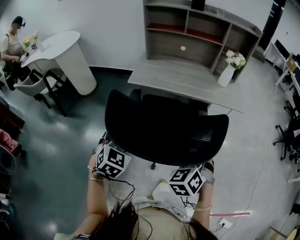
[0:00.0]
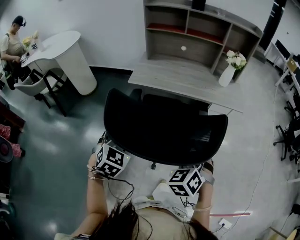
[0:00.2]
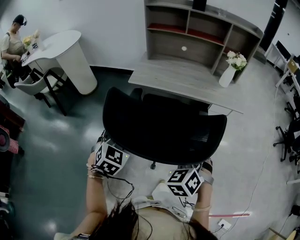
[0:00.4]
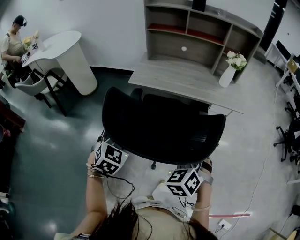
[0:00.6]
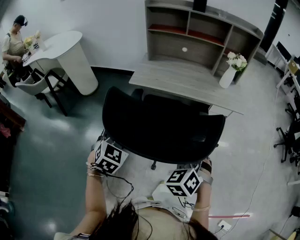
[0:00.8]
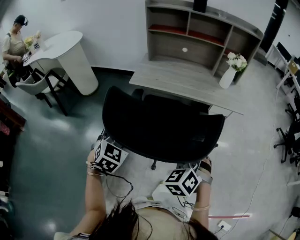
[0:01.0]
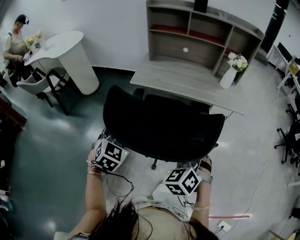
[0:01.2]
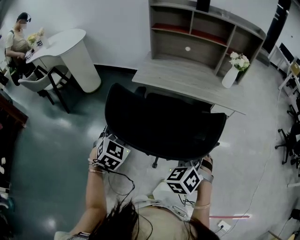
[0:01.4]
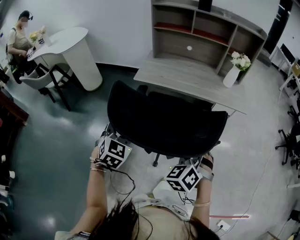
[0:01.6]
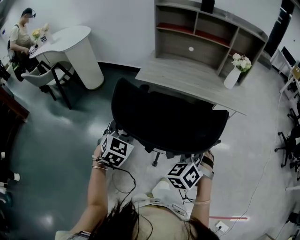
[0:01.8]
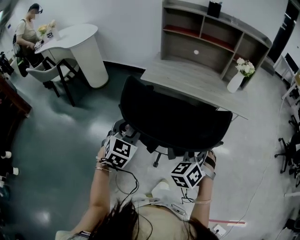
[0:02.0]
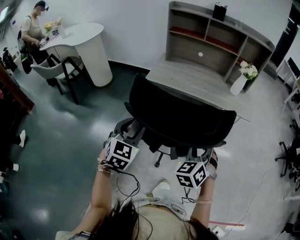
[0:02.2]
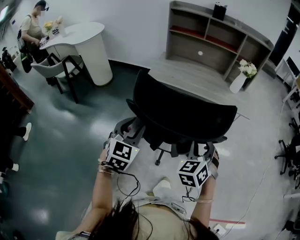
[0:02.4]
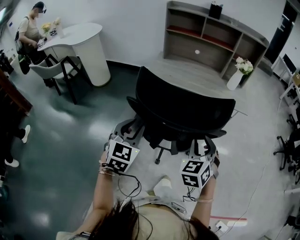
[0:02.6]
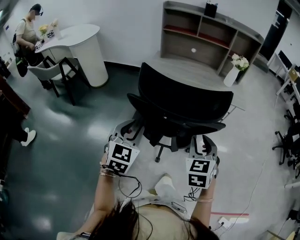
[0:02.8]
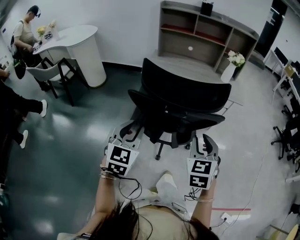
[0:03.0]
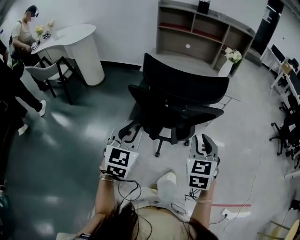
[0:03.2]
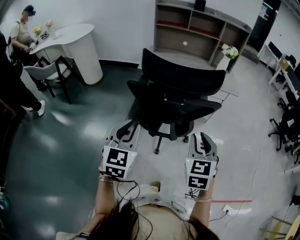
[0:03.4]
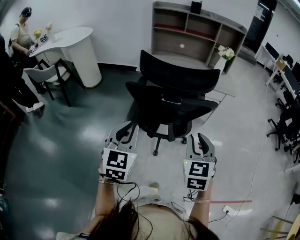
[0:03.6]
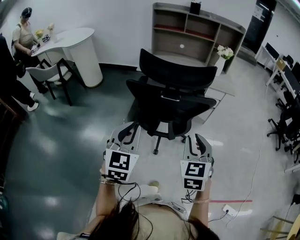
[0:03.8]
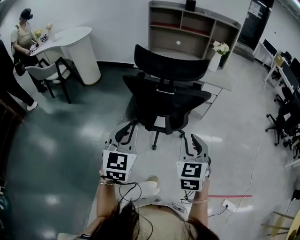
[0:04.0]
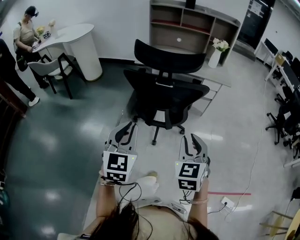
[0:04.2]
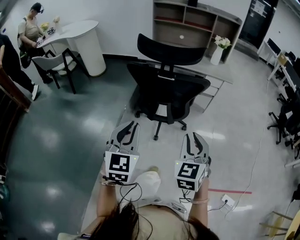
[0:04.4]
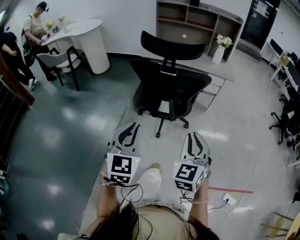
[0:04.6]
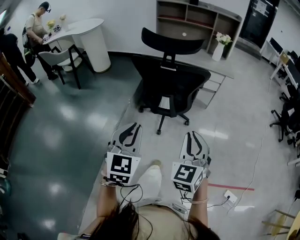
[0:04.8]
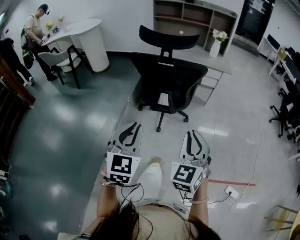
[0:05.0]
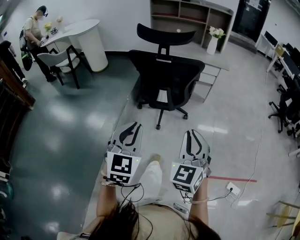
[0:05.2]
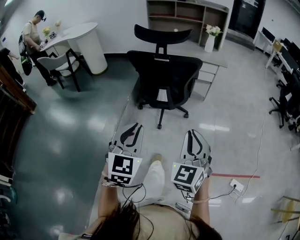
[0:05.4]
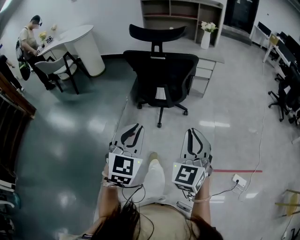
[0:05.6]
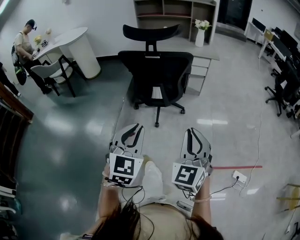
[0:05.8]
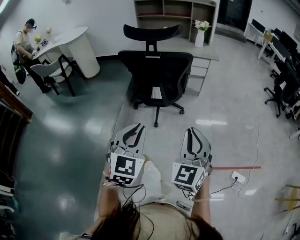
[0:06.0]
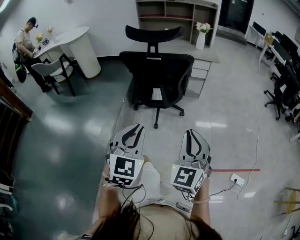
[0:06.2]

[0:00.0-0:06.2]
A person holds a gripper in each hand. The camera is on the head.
0:00.0 to 0:01.6: The grippers make only small movements.
0:01.6 to 0:03.2: The grippers both shift backward by roughly 15 cm. The right gripper changes its angle by approximately 30 degrees; the left gripper changes its angle by about 20 degrees.
0:03.2 to 0:04.6: The two grippers go roughly 20 cm backward.
0:04.6 to 0:06.2: The right gripper goes some 15 cm backward. Meanwhile the left gripper is displaced backward and to the right by about 15 cm.

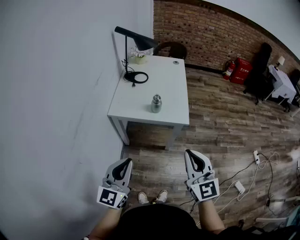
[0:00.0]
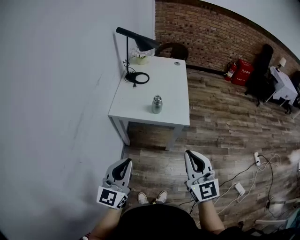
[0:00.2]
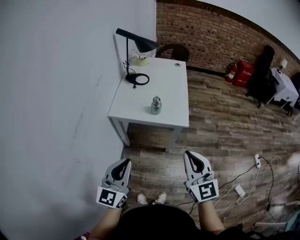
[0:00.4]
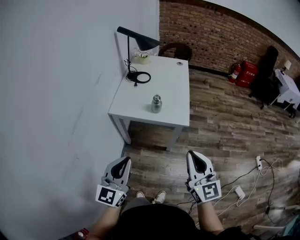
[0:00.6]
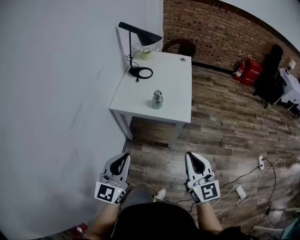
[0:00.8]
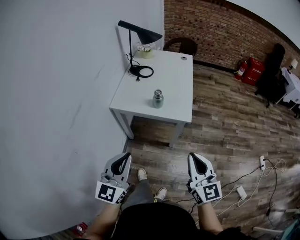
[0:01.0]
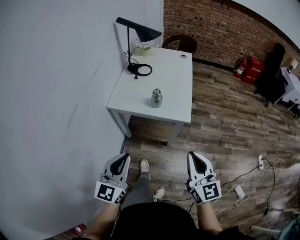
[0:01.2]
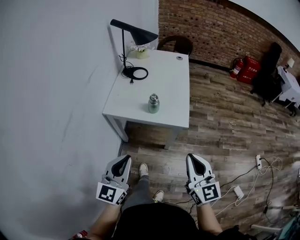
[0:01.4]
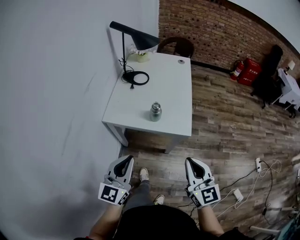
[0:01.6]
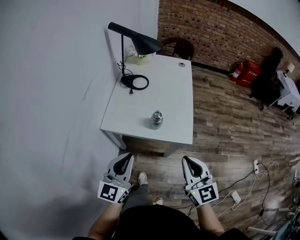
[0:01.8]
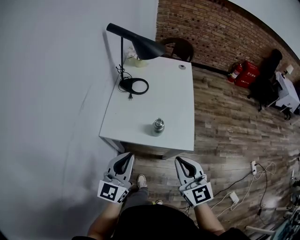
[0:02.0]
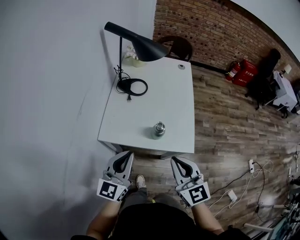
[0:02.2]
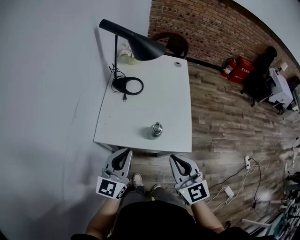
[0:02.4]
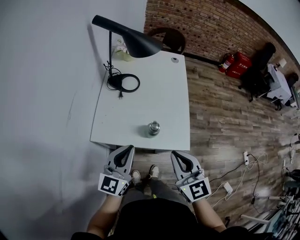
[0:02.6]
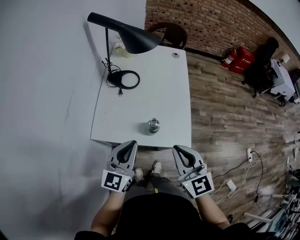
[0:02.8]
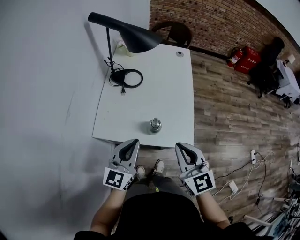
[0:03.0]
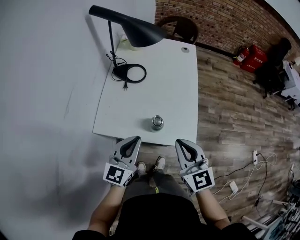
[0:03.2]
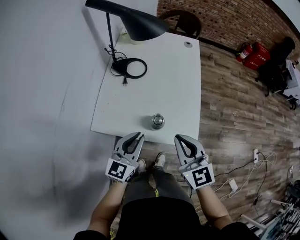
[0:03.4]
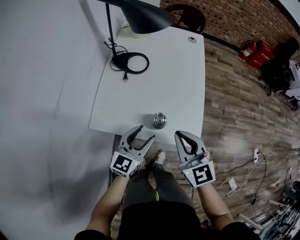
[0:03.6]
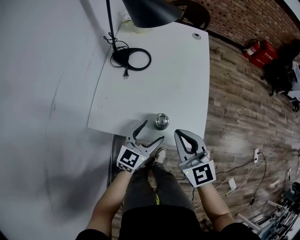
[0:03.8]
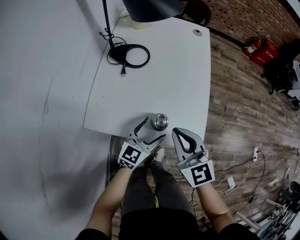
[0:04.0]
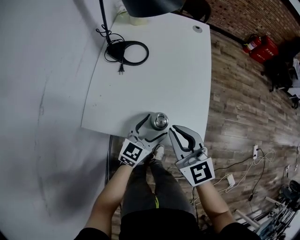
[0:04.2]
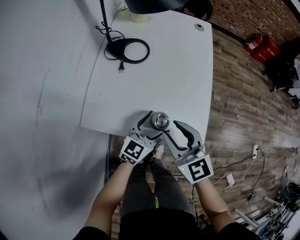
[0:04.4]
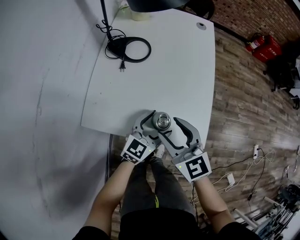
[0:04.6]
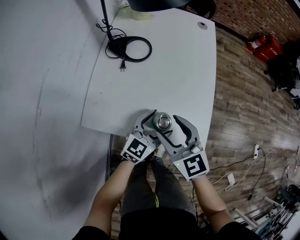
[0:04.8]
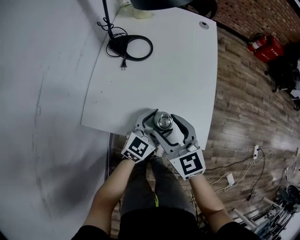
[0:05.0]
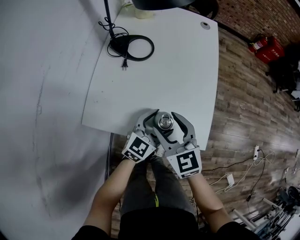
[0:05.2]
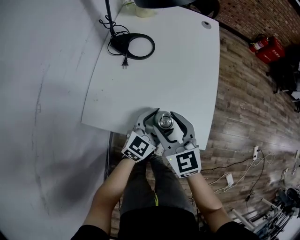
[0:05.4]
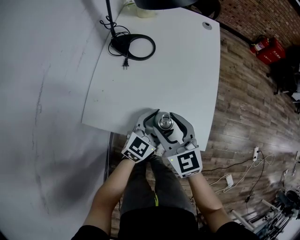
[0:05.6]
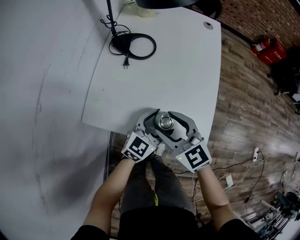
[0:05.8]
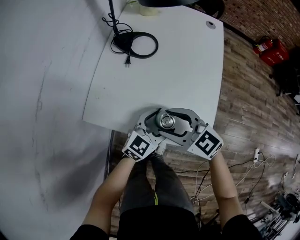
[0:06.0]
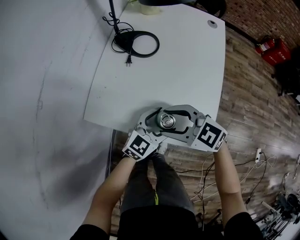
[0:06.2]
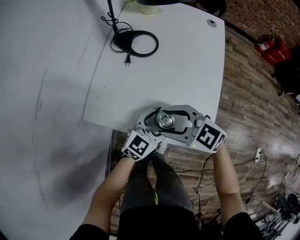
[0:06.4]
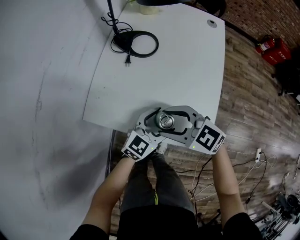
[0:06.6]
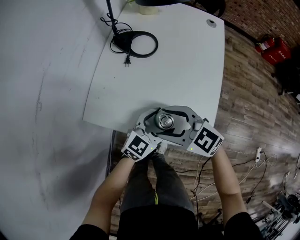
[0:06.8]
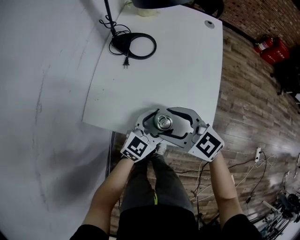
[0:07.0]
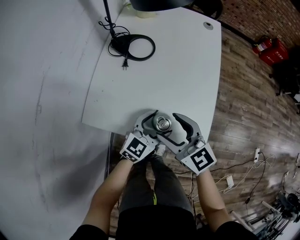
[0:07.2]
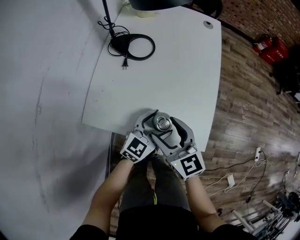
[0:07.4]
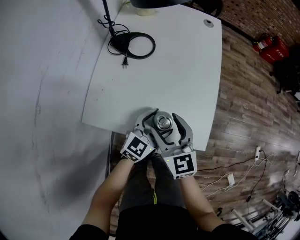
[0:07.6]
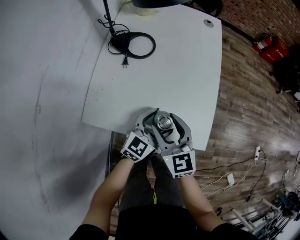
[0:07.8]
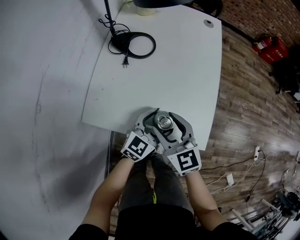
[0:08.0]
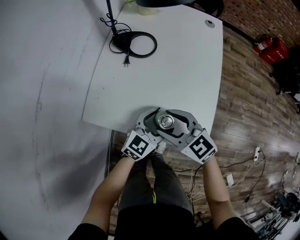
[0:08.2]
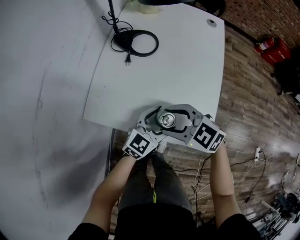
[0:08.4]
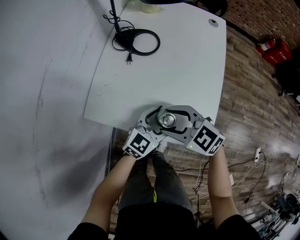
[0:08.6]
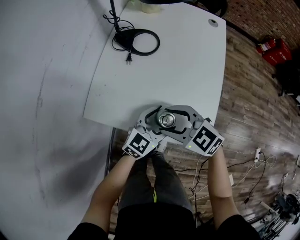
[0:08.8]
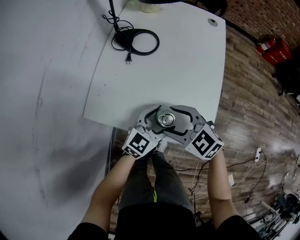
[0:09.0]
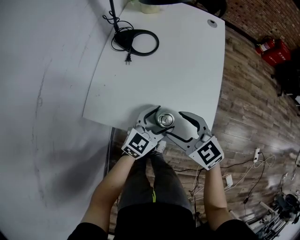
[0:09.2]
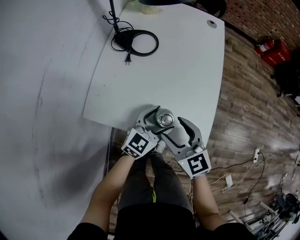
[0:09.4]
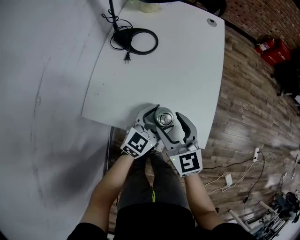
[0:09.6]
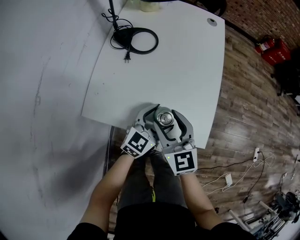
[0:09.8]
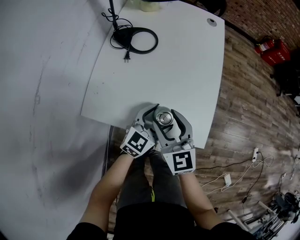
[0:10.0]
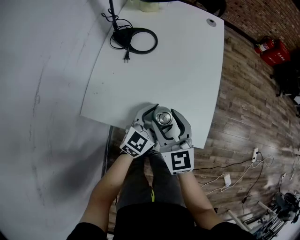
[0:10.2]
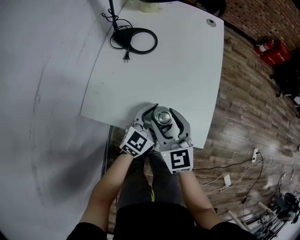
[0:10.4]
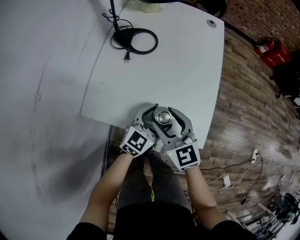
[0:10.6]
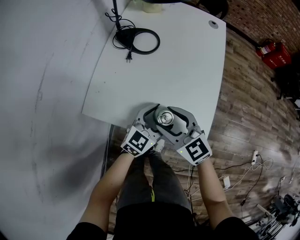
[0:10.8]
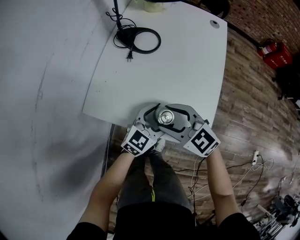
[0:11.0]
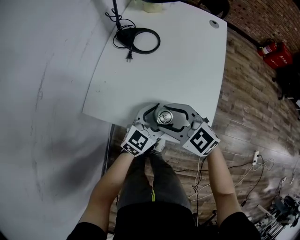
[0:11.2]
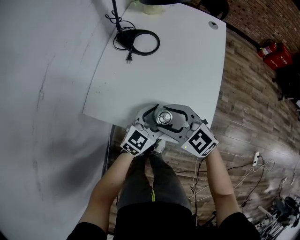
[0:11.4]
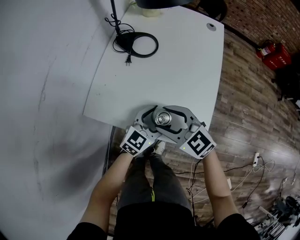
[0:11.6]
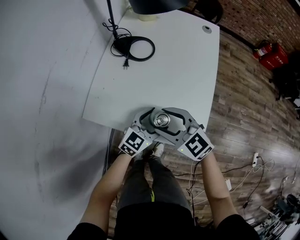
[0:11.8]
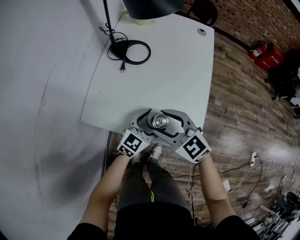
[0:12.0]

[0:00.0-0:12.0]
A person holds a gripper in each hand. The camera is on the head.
0:00.0 to 0:01.6: The left gripper moves forward, roughly 10 cm. The right gripper moves forward and downward, some 10 cm.
0:01.6 to 0:03.0: The grippers both shift forward by about 20 cm.
0:03.0 to 0:04.4: The left gripper shifts approximately 25 cm downward, forward and to the right, turns by roughly 20 degrees, and opens its fingers. Meanwhile the right gripper heads downward and forward, covering about 15 cm, and opens.
0:04.4 to 0:06.0: The right gripper moves roughly 5 cm, rotates approximately 30 degrees, and opens its fingers.
0:06.0 to 0:07.6: The right gripper swivels about 40 degrees.
0:07.6 to 0:09.0: The right gripper turns by roughly 50 degrees.
0:09.0 to 0:10.4: The right gripper turns by some 40 degrees.
0:10.4 to 0:12.0: The right gripper swivels some 30 degrees.

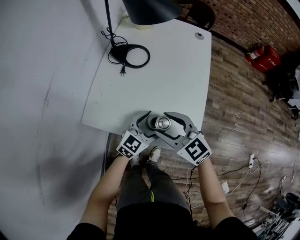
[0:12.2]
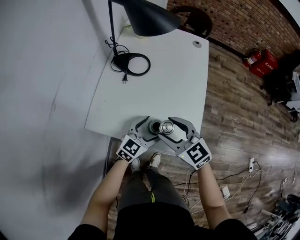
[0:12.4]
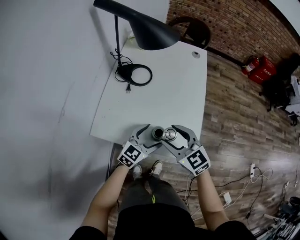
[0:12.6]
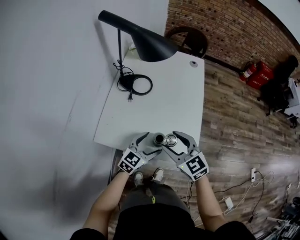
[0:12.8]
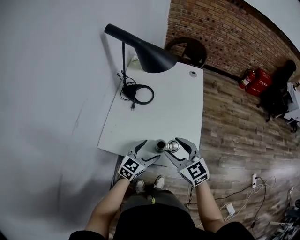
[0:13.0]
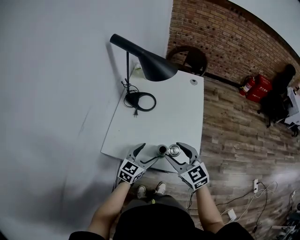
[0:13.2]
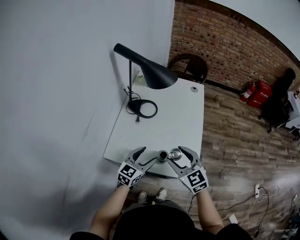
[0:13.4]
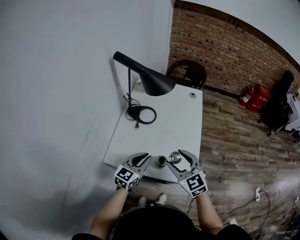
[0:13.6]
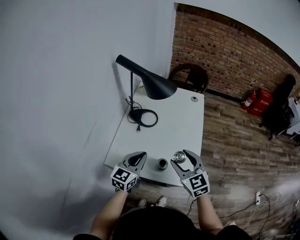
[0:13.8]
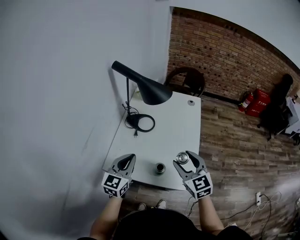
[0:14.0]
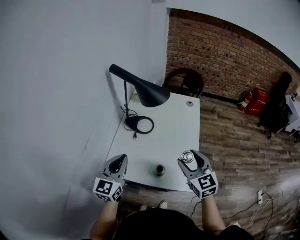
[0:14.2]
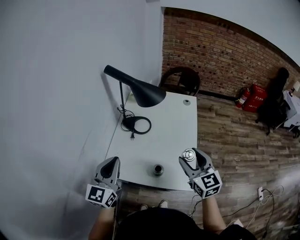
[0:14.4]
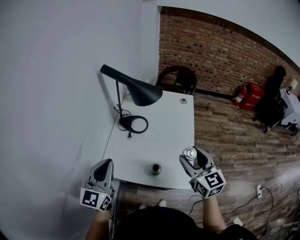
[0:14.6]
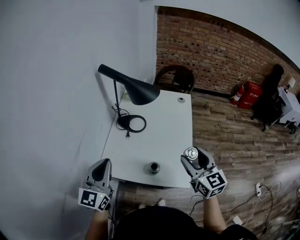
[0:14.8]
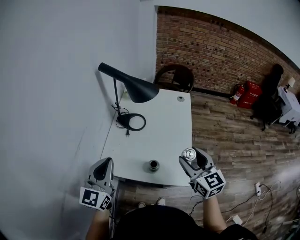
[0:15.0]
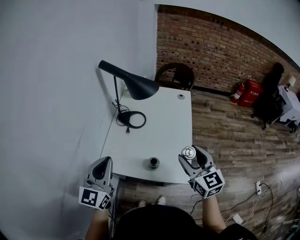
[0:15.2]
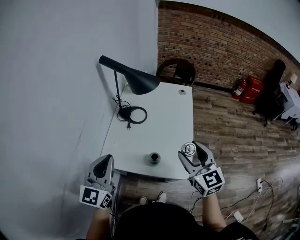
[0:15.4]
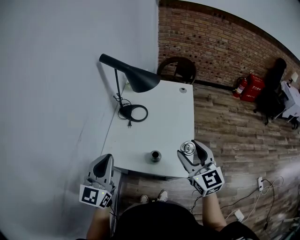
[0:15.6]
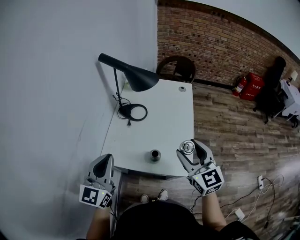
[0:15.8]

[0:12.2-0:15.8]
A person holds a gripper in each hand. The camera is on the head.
0:12.2 to 0:14.0: The left gripper goes approximately 25 cm upward and to the left, swivels about 30 degrees, and closes its fingers; the right gripper is displaced upward and to the right by roughly 15 cm, and rotates about 30 degrees.
0:14.0 to 0:15.8: The right gripper travels upward by some 5 cm; the left gripper heads upward and backward, covering approximately 15 cm.

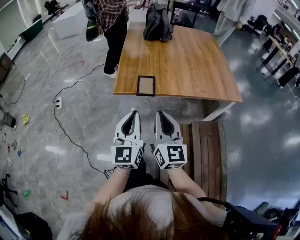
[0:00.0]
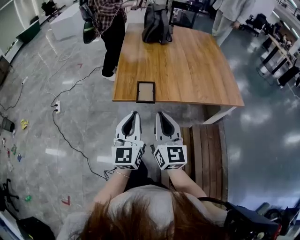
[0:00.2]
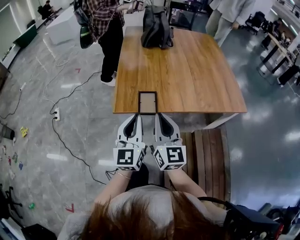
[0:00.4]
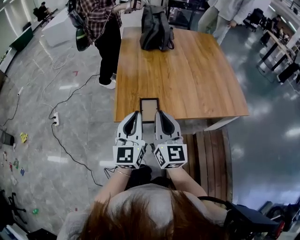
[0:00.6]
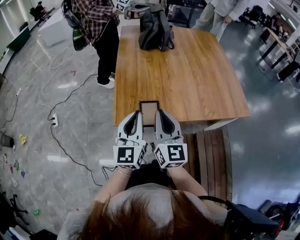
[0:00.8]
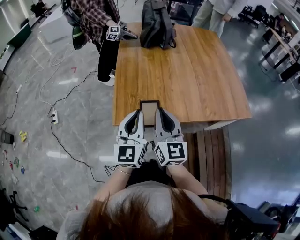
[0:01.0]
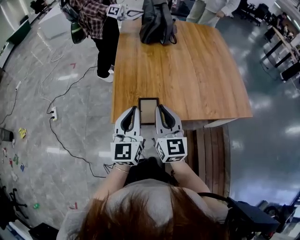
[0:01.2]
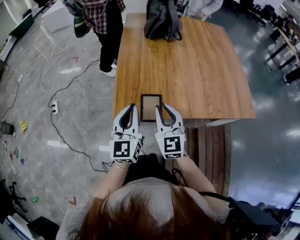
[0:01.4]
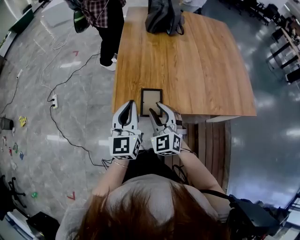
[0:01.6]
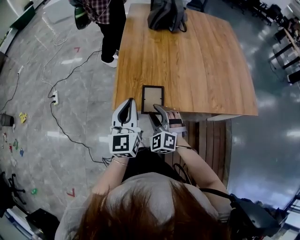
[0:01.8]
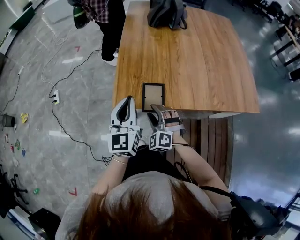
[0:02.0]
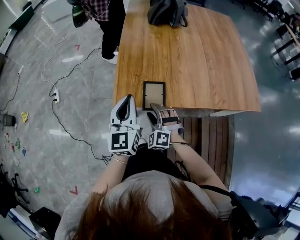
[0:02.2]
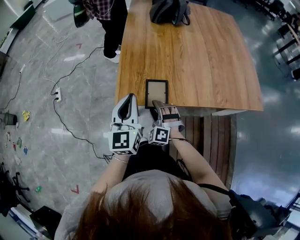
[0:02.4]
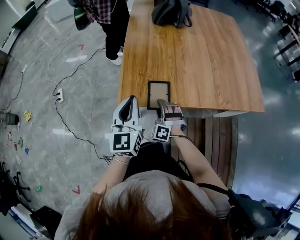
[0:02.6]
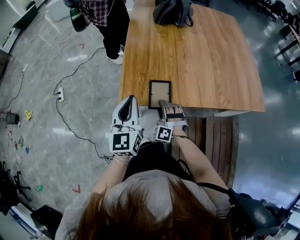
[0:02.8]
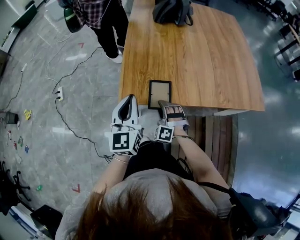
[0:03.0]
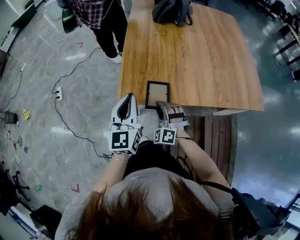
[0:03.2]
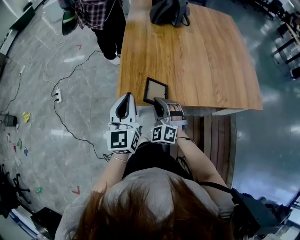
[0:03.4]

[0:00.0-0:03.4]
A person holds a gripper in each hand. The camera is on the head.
0:00.0 to 0:01.6: The left gripper is displaced forward by about 25 cm, while the right gripper moves forward and downward, roughly 30 cm, rotates around the line of its fingers by approximately 40 degrees, counterclockwise from behind, and opens up.
0:01.6 to 0:03.4: The right gripper travels downward by approximately 5 cm.
